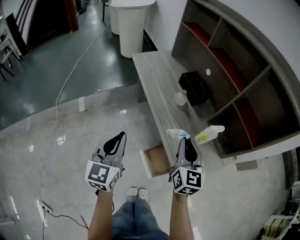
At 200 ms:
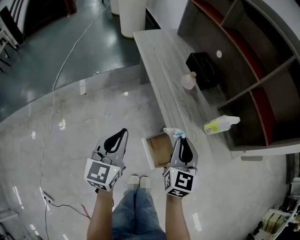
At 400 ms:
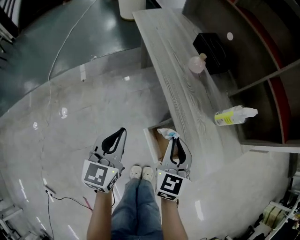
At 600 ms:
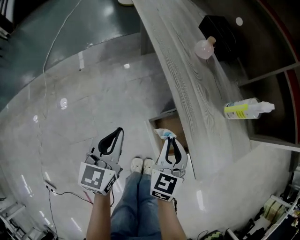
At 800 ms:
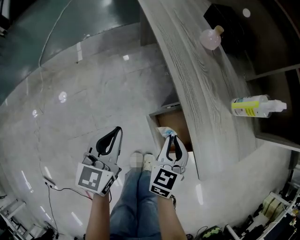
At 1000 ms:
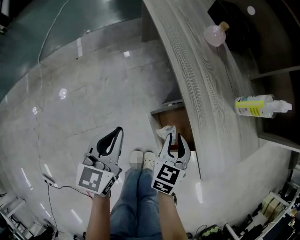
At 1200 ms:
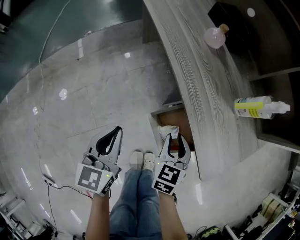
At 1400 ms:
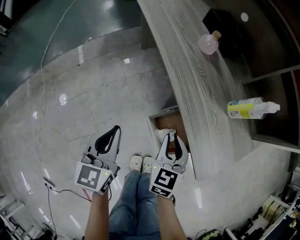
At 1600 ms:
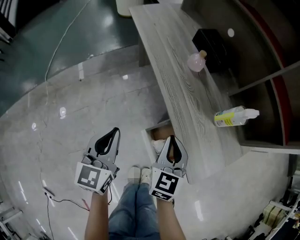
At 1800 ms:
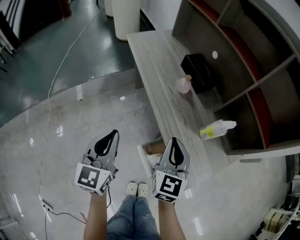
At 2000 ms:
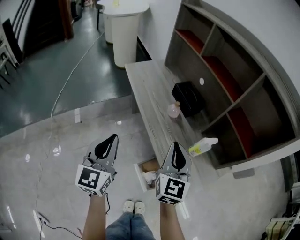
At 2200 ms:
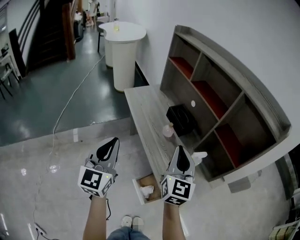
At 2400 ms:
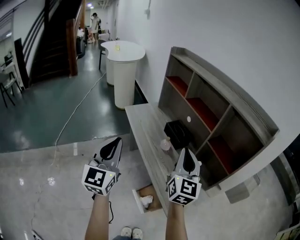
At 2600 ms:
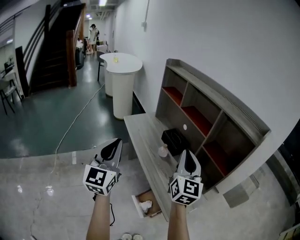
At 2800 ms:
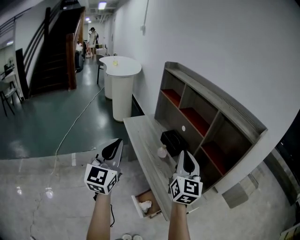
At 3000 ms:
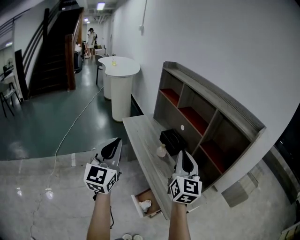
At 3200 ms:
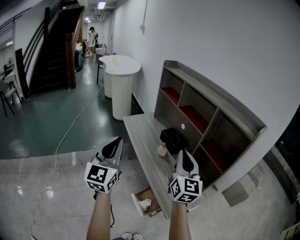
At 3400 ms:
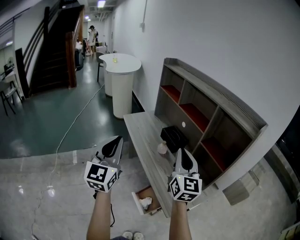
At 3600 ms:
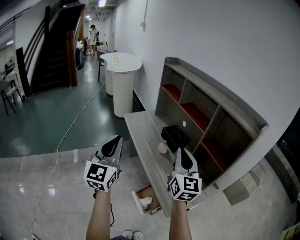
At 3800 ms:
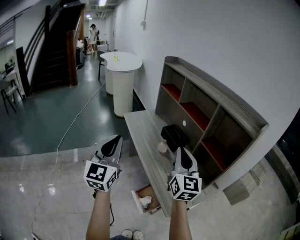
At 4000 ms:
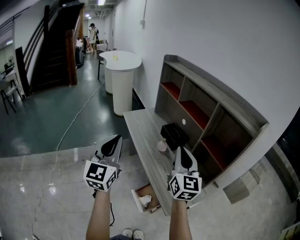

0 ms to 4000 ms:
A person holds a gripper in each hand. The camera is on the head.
0 ms to 1400 ms: Both grippers move downward, about 25 cm. The right gripper rotates about 30 degrees.
1400 ms to 2600 ms: The grippers both shift upward by roughly 50 cm. The right gripper points its fingers roughly 40 degrees further upward, while the left gripper angles its fingers upward, by about 30 degrees.
2600 ms to 4000 ms: The grippers move only a little.

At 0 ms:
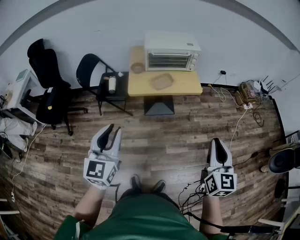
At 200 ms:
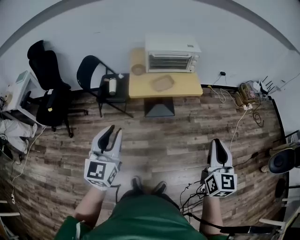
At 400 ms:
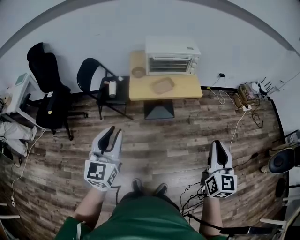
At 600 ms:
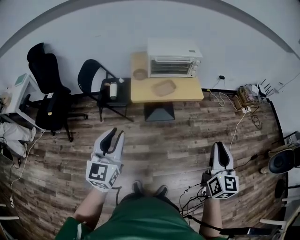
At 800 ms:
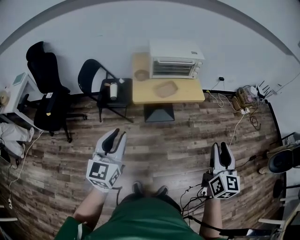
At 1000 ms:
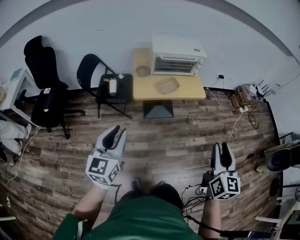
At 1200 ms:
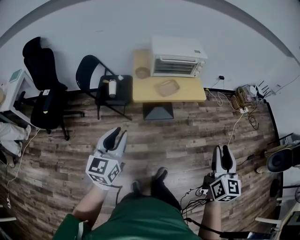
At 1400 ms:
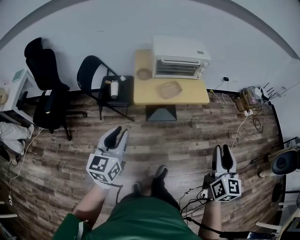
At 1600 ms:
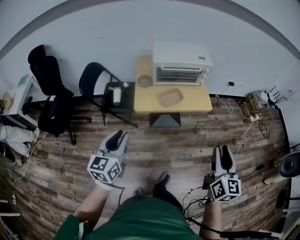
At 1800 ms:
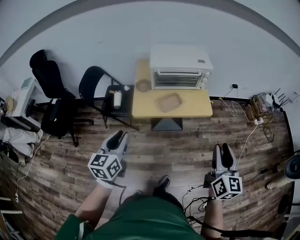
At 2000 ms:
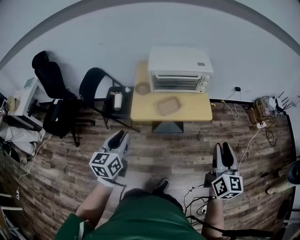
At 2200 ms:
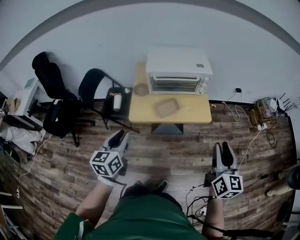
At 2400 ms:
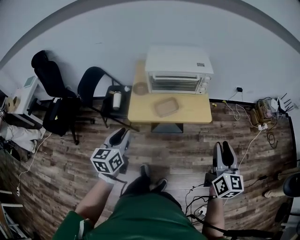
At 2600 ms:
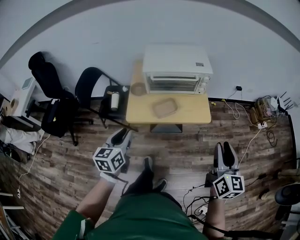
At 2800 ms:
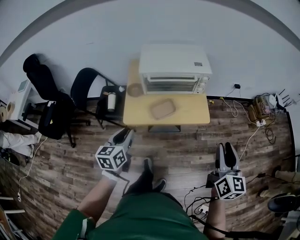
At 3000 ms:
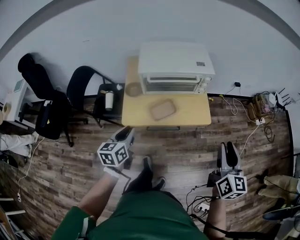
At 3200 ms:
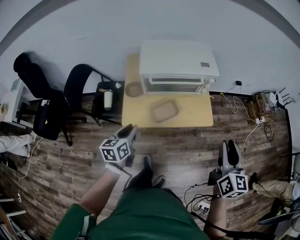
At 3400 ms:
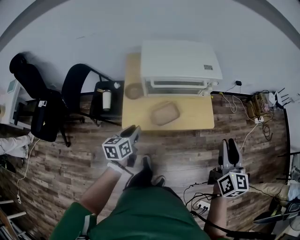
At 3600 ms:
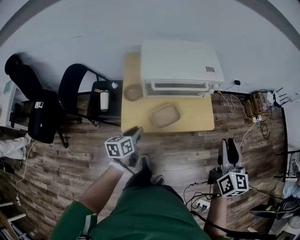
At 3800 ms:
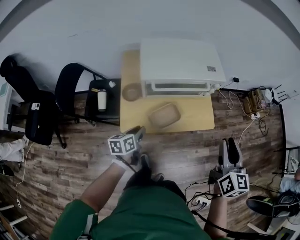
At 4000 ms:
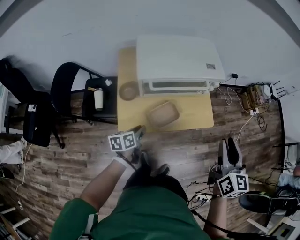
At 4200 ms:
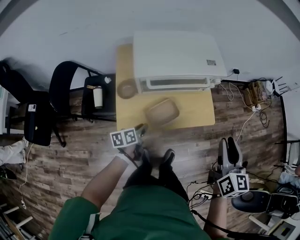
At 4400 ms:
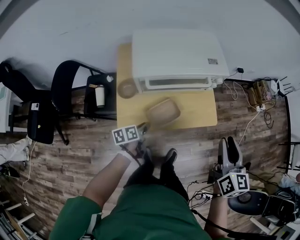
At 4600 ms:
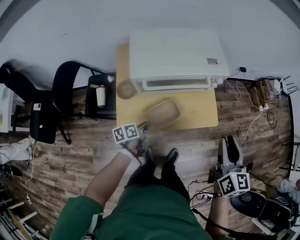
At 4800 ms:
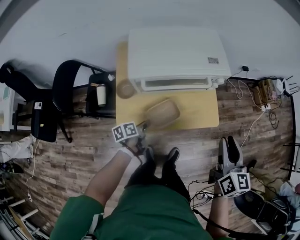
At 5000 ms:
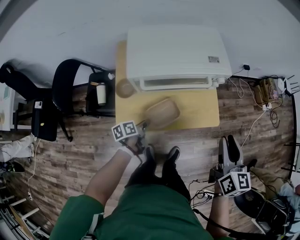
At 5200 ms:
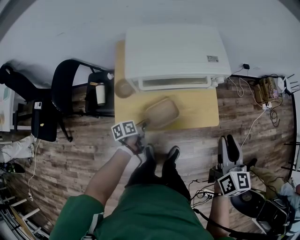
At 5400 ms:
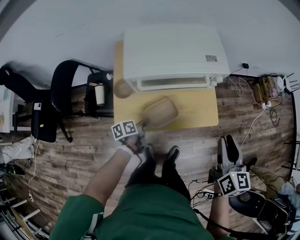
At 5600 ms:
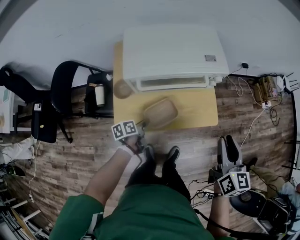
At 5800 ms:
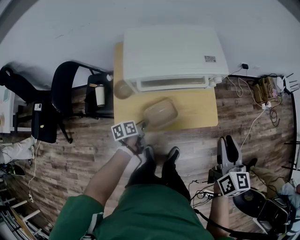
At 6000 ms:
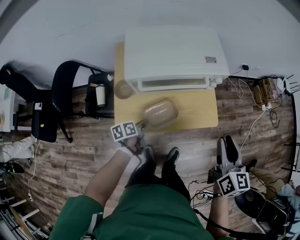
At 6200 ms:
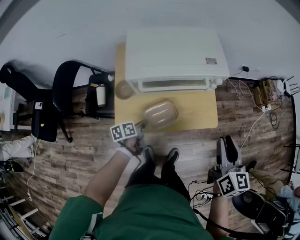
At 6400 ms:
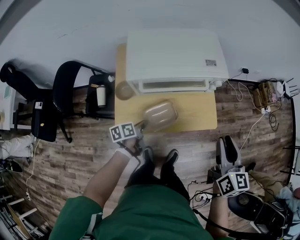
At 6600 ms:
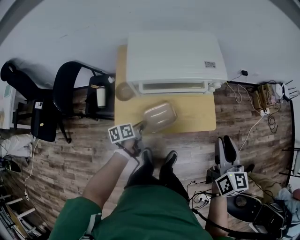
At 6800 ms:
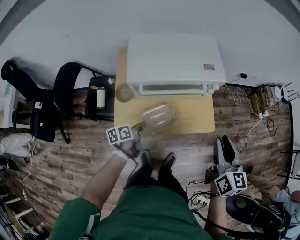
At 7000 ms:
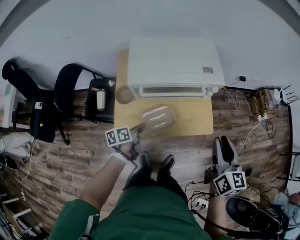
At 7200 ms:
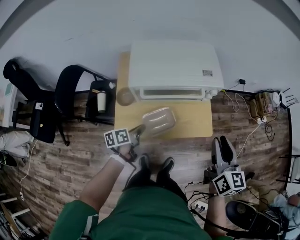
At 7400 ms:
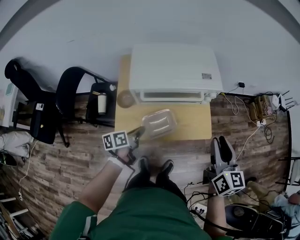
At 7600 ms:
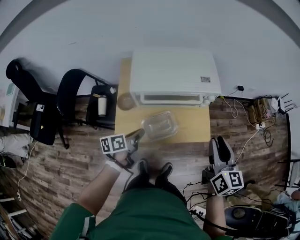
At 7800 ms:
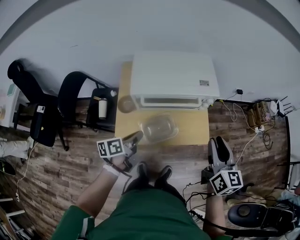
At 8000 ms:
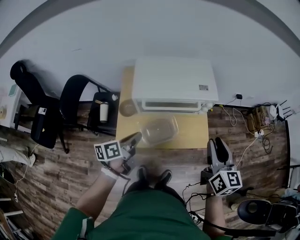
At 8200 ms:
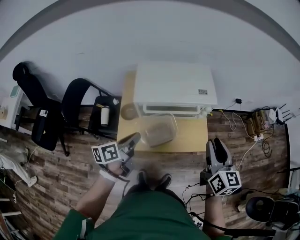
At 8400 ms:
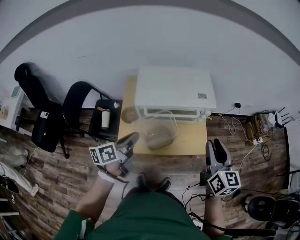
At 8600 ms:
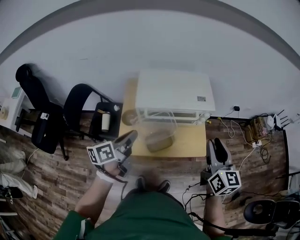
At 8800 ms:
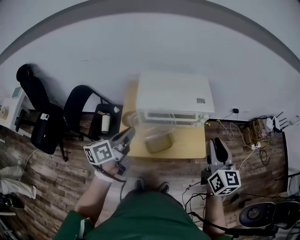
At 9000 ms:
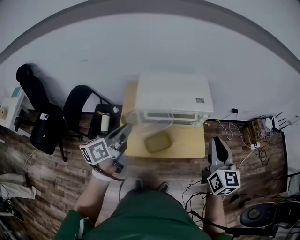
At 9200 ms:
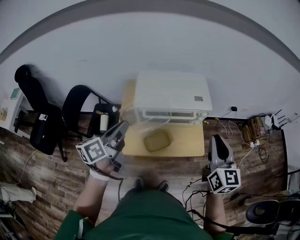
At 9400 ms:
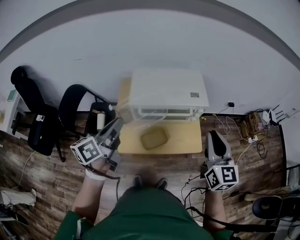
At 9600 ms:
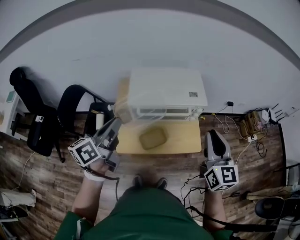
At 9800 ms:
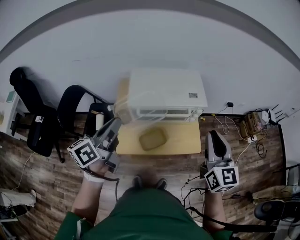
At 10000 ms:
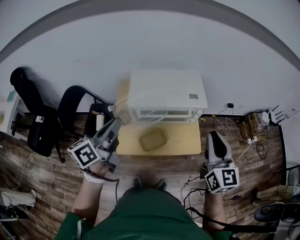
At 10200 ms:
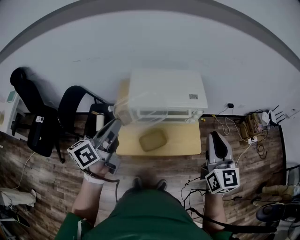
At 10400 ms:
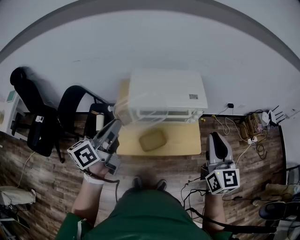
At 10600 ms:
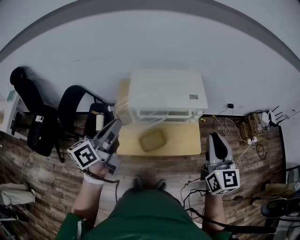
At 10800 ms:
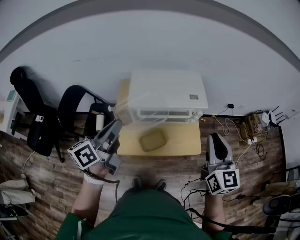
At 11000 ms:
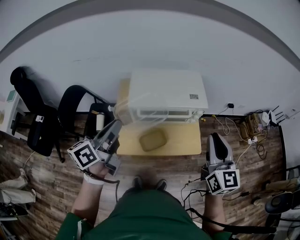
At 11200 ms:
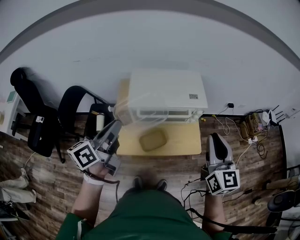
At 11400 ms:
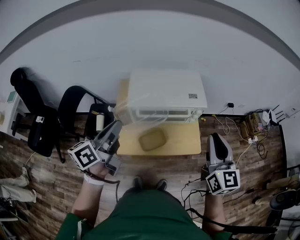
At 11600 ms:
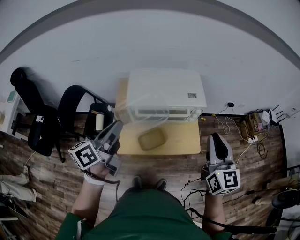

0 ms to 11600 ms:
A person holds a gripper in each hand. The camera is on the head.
0 ms to 1400 ms: Both grippers travel together forward and to the left, about 10 cm. The right gripper opens up.
1400 ms to 2800 ms: Both grippers move forward and to the right, approximately 25 cm.
2800 ms to 4400 ms: The right gripper moves forward and to the left, some 20 cm, while the left gripper shifts about 30 cm downward and forward, and changes its angle by roughly 40 degrees.
4400 ms to 5800 ms: The grippers move only a little.
5800 ms to 7200 ms: The left gripper travels upward by approximately 10 cm.
7200 ms to 8800 ms: The left gripper shifts roughly 25 cm upward, and rotates about 30 degrees. Meanwhile the right gripper goes some 10 cm upward.
8800 ms to 10200 ms: The left gripper shifts approximately 5 cm upward.
10200 ms to 11600 ms: There are only small adjustments of the grippers.

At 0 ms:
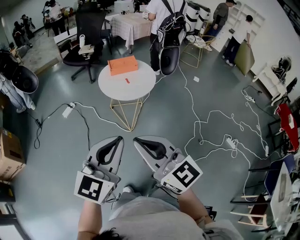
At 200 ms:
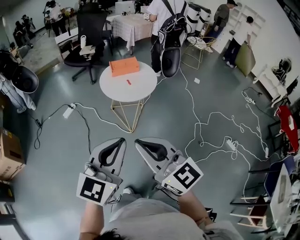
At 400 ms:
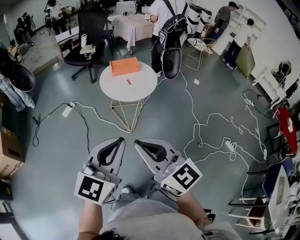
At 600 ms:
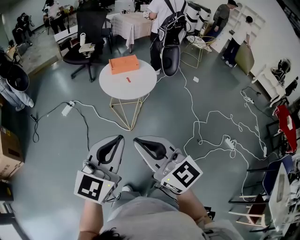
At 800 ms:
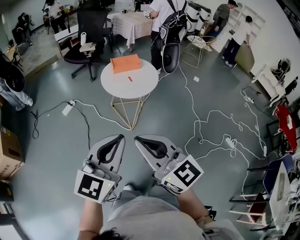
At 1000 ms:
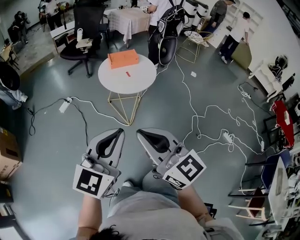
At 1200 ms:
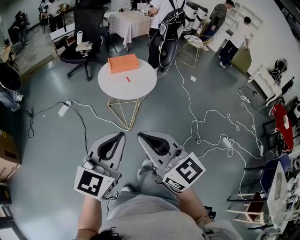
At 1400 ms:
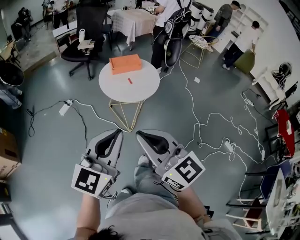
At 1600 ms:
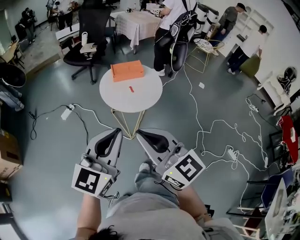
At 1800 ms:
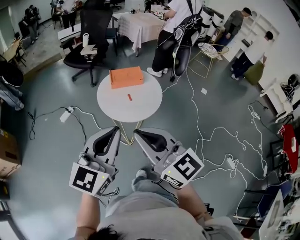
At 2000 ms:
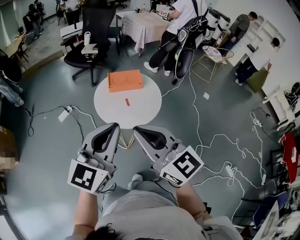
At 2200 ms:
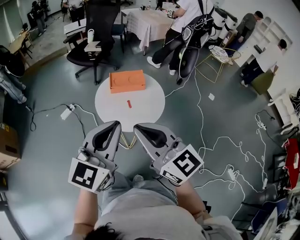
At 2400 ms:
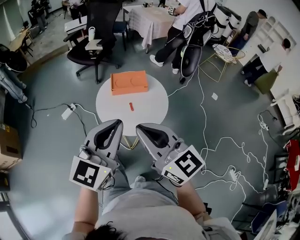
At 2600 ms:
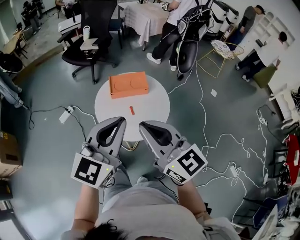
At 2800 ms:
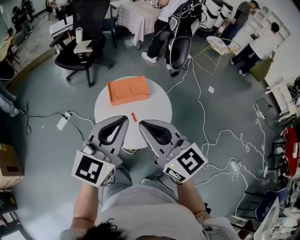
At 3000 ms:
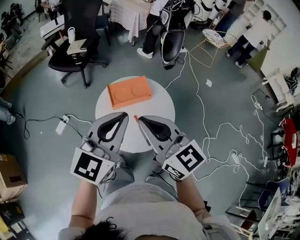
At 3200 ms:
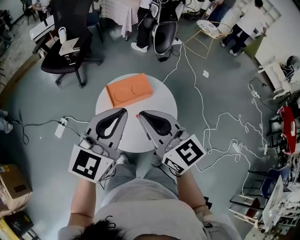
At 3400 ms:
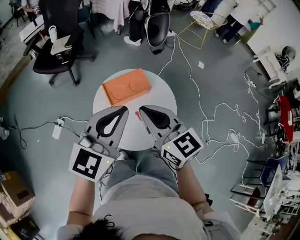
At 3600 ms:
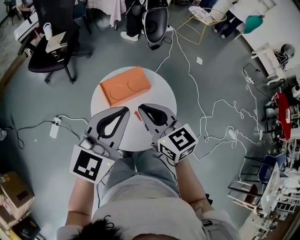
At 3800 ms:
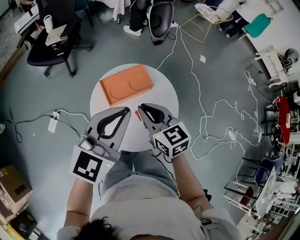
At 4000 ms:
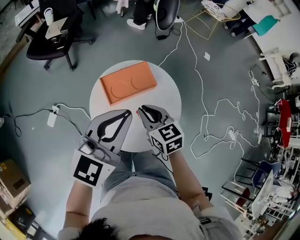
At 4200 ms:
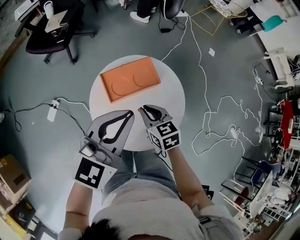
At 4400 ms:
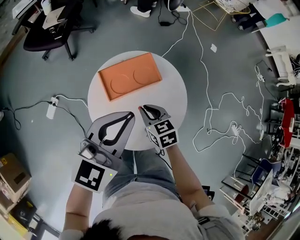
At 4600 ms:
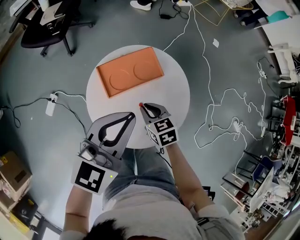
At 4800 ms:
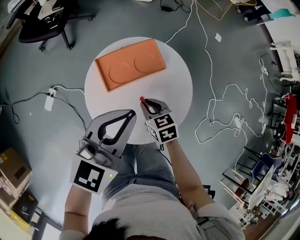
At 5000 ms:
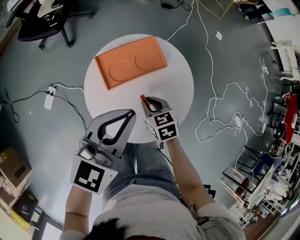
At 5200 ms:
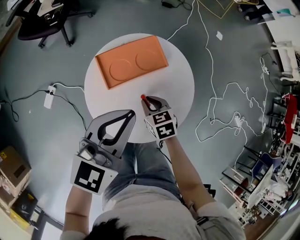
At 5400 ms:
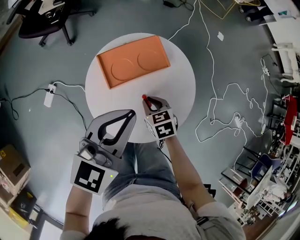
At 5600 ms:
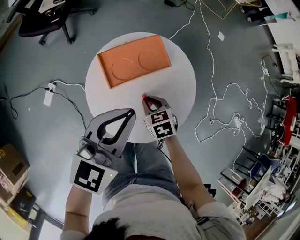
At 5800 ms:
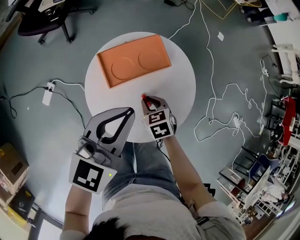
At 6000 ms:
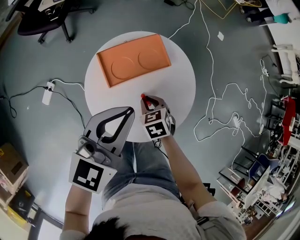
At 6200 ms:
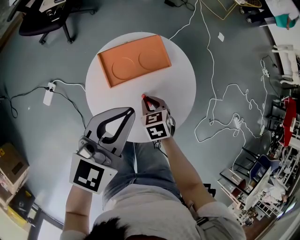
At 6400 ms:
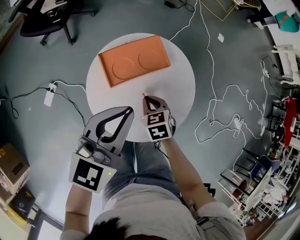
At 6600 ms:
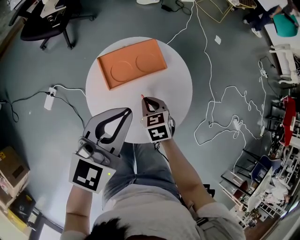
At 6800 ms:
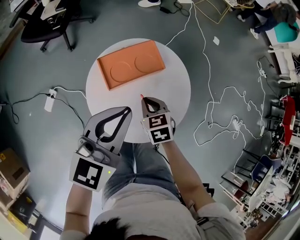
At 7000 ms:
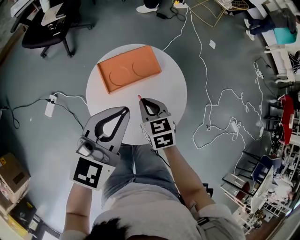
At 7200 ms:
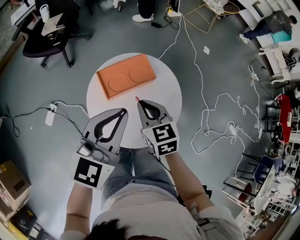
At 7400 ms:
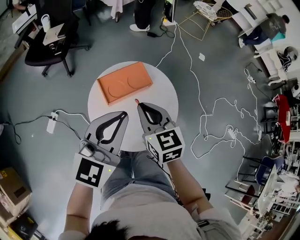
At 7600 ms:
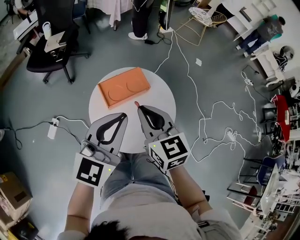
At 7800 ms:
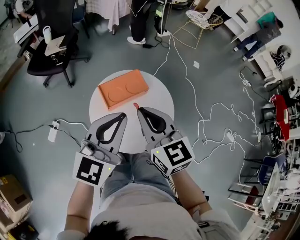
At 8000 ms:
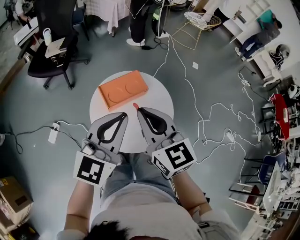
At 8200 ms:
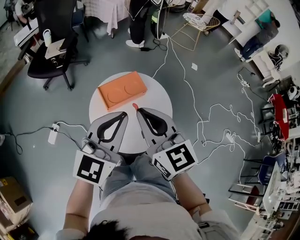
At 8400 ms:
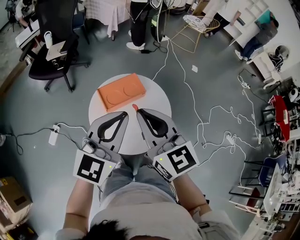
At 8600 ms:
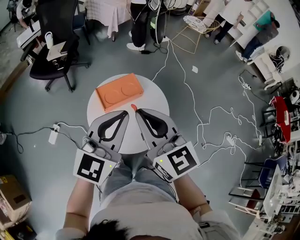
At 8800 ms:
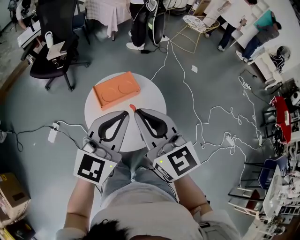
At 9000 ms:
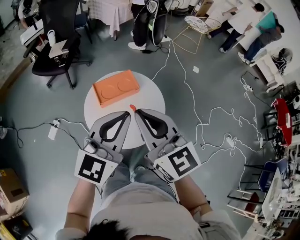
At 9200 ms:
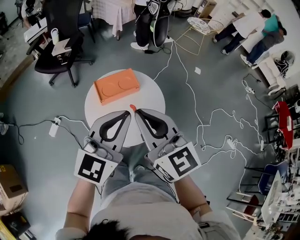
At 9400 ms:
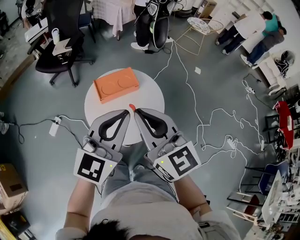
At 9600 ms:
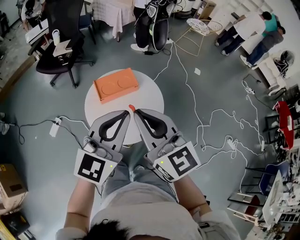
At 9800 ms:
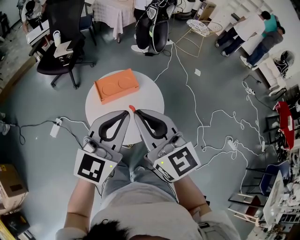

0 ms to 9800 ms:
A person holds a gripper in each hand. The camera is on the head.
0 ms to 1400 ms: The grippers both shift forward by some 10 cm.
1400 ms to 2800 ms: Both grippers are carried forward, some 40 cm.
2800 ms to 4200 ms: The left gripper is displaced forward and downward by some 15 cm. Meanwhile the right gripper goes roughly 35 cm downward and forward, and angles its fingers downward, by roughly 40 degrees.
4200 ms to 5600 ms: The right gripper is displaced downward by approximately 10 cm. Meanwhile the left gripper is displaced downward by approximately 5 cm.
5600 ms to 7000 ms: The right gripper goes about 10 cm upward.
7000 ms to 8400 ms: The right gripper goes roughly 30 cm upward, and tips its fingers upward by about 40 degrees. Meanwhile the left gripper travels upward by approximately 10 cm.
8400 ms to 9800 ms: Both grippers travel together backward and to the right, some 10 cm.
